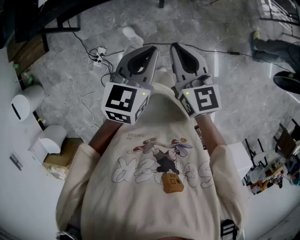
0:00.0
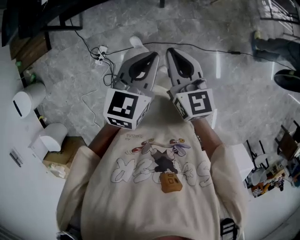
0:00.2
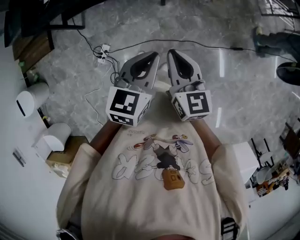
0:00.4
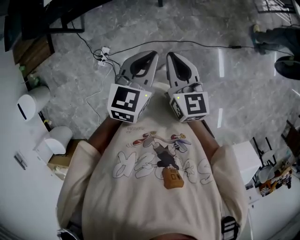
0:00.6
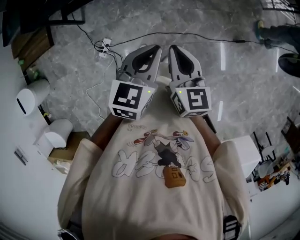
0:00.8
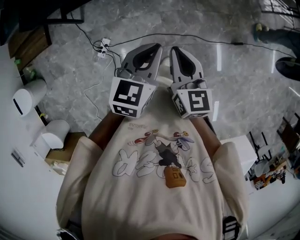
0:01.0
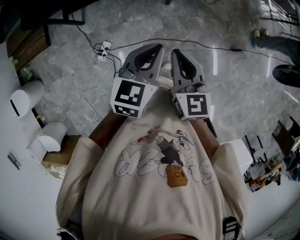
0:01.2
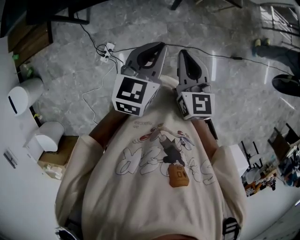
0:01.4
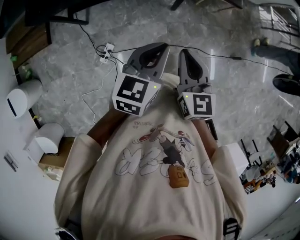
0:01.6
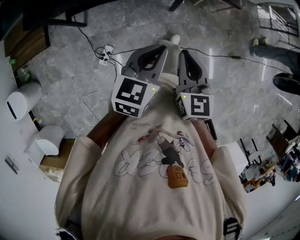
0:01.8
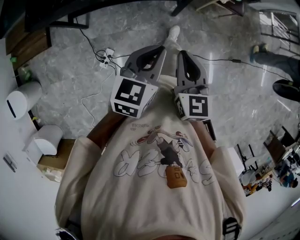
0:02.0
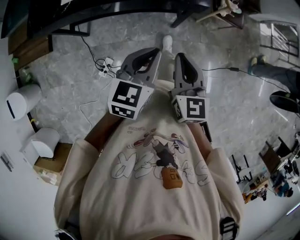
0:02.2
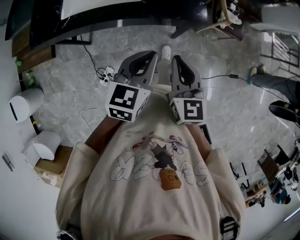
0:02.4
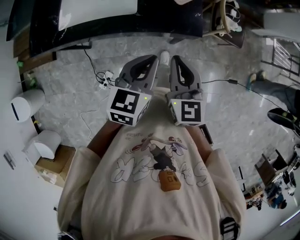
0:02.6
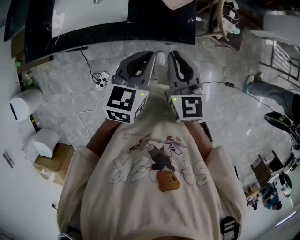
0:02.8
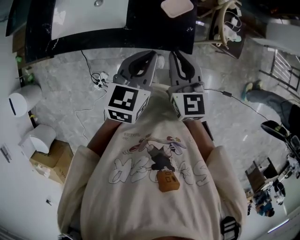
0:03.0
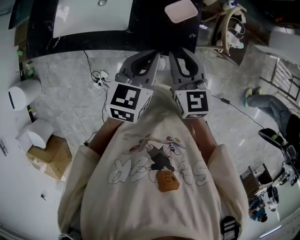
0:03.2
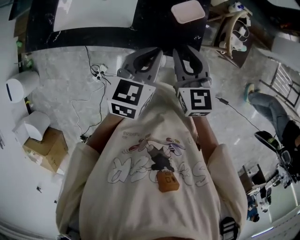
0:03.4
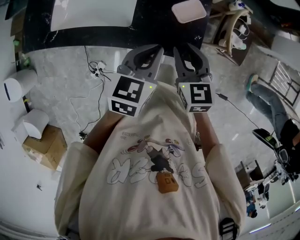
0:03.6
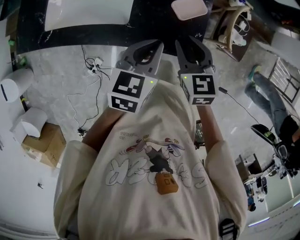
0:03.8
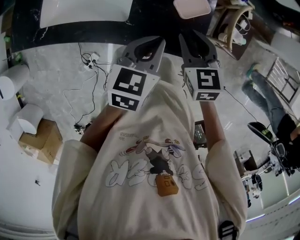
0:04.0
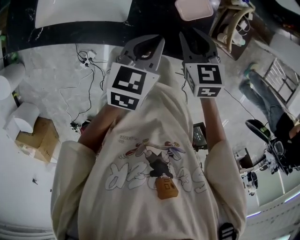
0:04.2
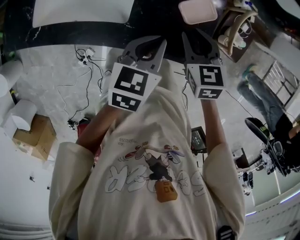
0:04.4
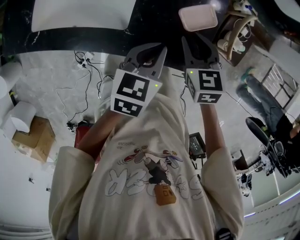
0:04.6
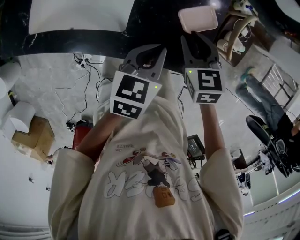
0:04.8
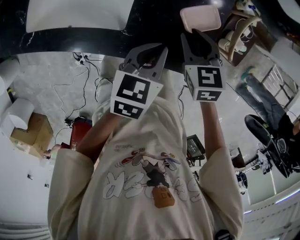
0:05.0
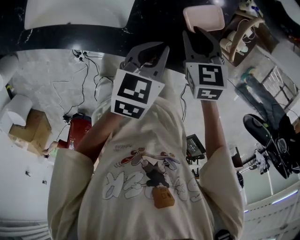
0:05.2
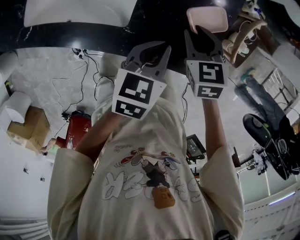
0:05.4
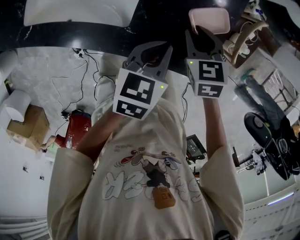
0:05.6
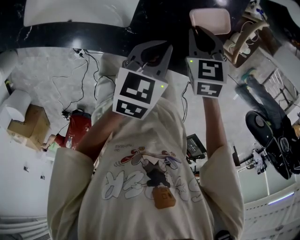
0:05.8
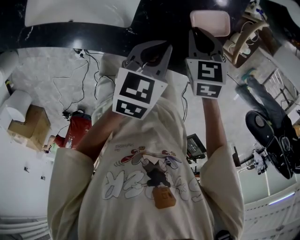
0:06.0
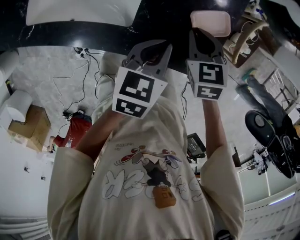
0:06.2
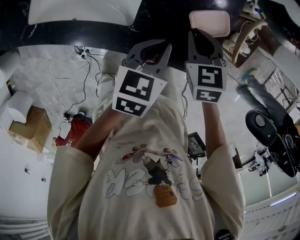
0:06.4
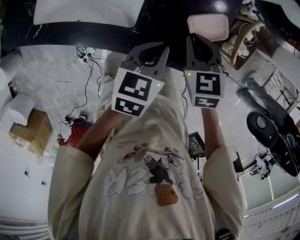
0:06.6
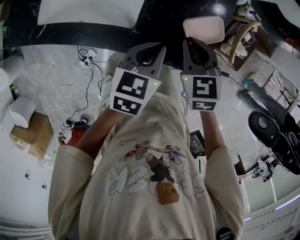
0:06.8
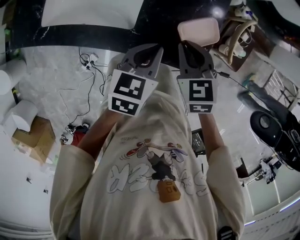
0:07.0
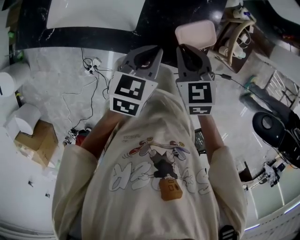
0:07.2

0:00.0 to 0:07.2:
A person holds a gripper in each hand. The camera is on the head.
0:00.0 to 0:01.4: Both grippers travel together to the left, about 10 cm.
0:01.4 to 0:02.8: Both grippers move forward, some 40 cm.
0:02.8 to 0:04.4: The two grippers go roughly 20 cm forward and downward. The right gripper turns by about 30 degrees, and opens up.
0:04.4 to 0:05.8: The two grippers go roughly 5 cm downward.
0:05.8 to 0:07.2: The right gripper moves upward and backward, roughly 15 cm. Meanwhile the left gripper heads upward, covering about 10 cm.

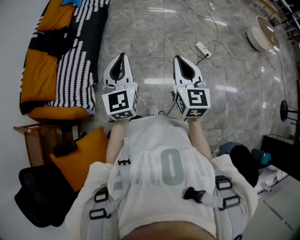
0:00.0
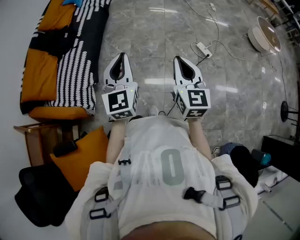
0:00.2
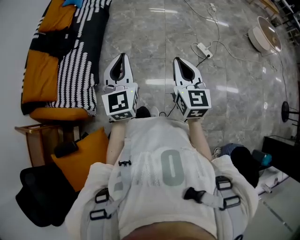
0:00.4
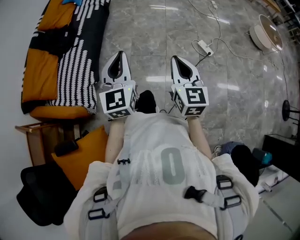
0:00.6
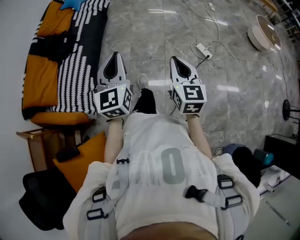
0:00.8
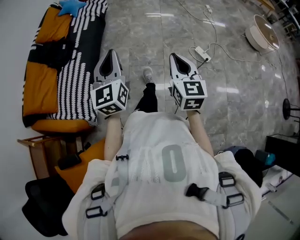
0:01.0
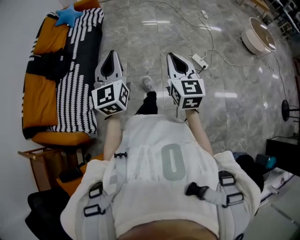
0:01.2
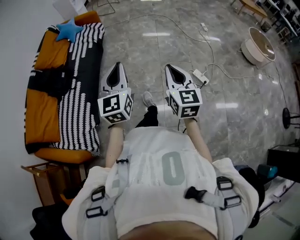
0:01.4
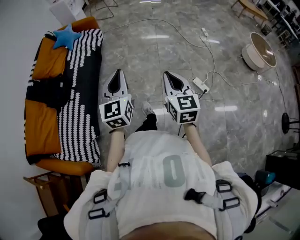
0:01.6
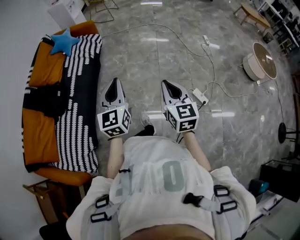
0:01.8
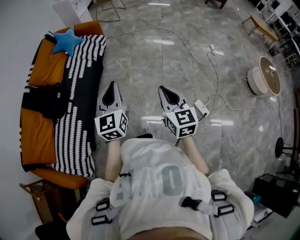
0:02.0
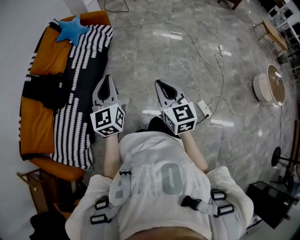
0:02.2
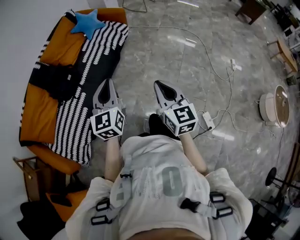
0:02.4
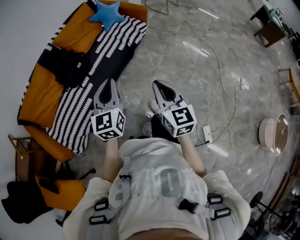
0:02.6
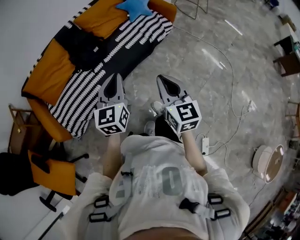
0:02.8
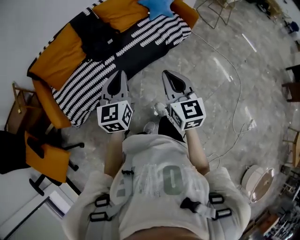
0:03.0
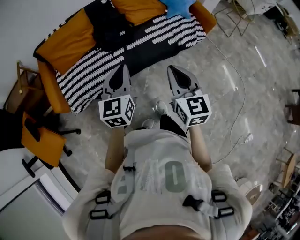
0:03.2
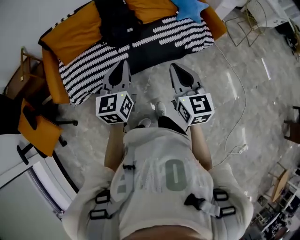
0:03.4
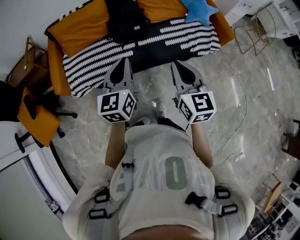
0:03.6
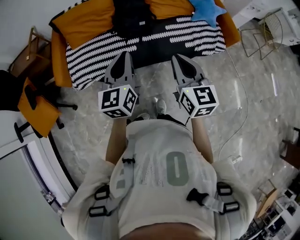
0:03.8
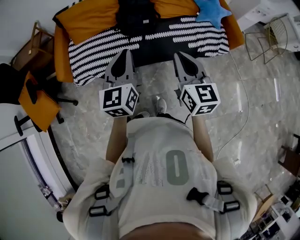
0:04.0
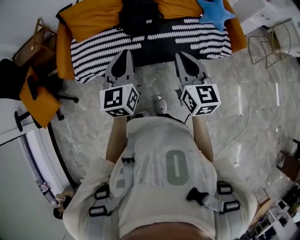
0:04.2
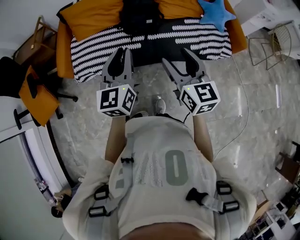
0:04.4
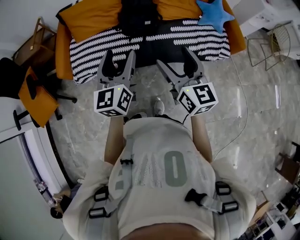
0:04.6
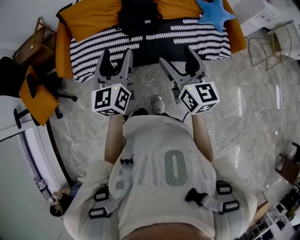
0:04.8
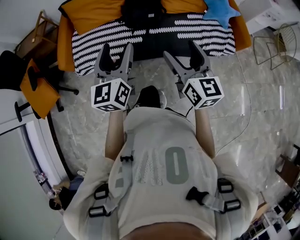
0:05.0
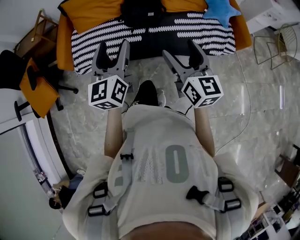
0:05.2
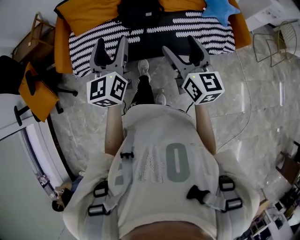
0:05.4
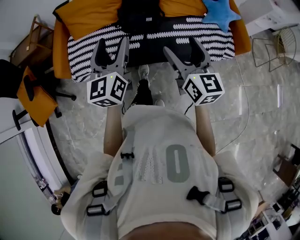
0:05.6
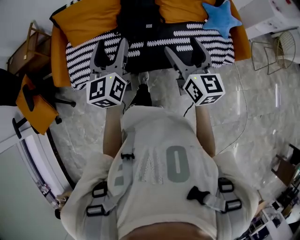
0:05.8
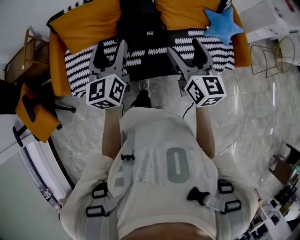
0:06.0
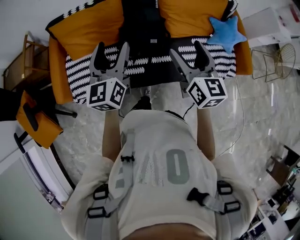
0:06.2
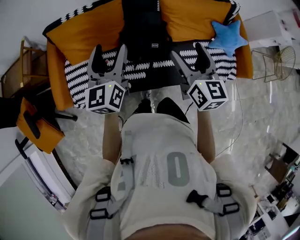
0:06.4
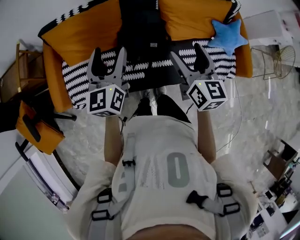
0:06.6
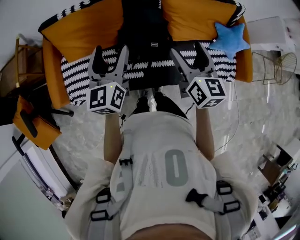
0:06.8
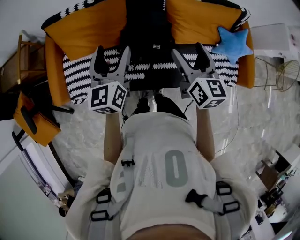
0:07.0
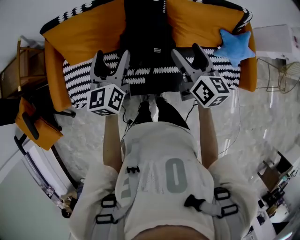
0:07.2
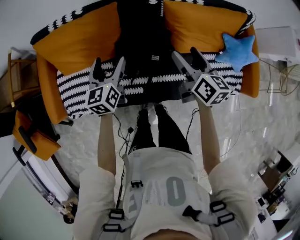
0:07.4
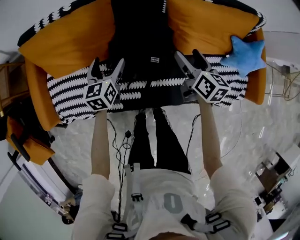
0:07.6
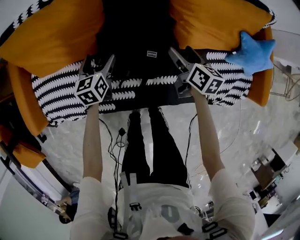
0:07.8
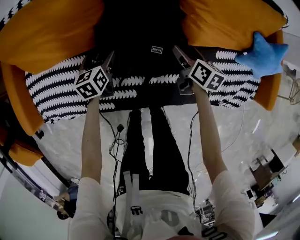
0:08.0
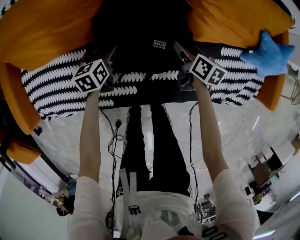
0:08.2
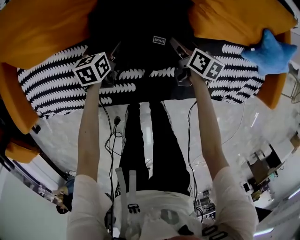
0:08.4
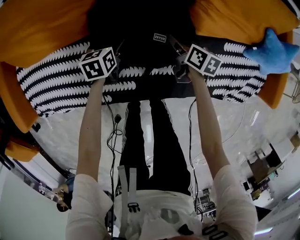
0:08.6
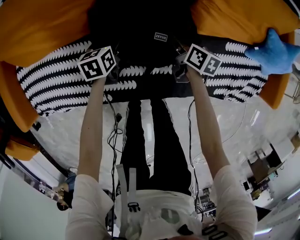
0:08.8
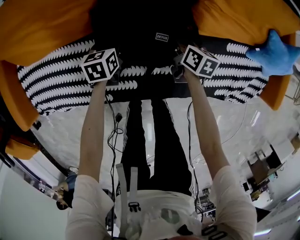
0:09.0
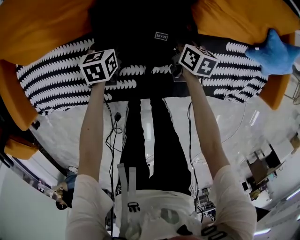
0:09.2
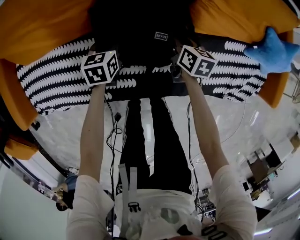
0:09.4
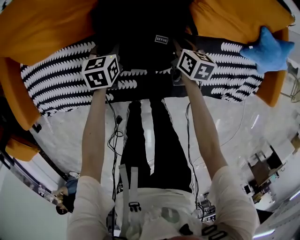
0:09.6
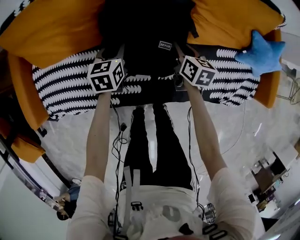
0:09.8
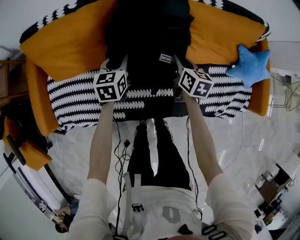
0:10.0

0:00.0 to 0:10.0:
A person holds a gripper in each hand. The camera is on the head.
0:00.0 to 0:01.4: The two grippers go some 20 cm forward.
0:01.4 to 0:02.8: The left gripper shifts by approximately 35 cm, and rotates some 40 degrees, while the right gripper changes place by about 40 cm, and rotates approximately 50 degrees.
0:02.8 to 0:04.2: The left gripper changes place by approximately 10 cm, and turns by approximately 40 degrees. Meanwhile the right gripper moves some 20 cm, and rotates about 30 degrees.
0:04.2 to 0:05.8: The two grippers go some 15 cm forward. The left gripper opens, while the right gripper opens its fingers.
0:05.8 to 0:07.2: Both grippers move forward, roughly 30 cm.
0:07.2 to 0:08.6: The grippers both shift downward by some 50 cm. The right gripper swivels roughly 40 degrees. The left gripper tilts its fingers some 40 degrees downward.
0:08.6 to 0:10.0: The grippers both shift upward by some 20 cm. The right gripper closes up, while the left gripper swivels approximately 20 degrees, and closes up.

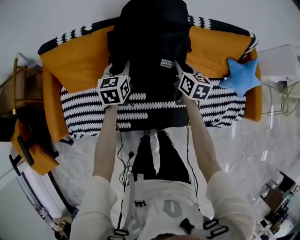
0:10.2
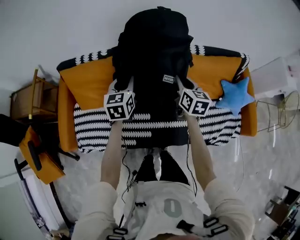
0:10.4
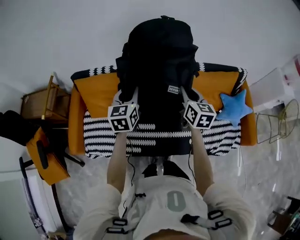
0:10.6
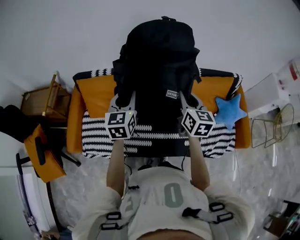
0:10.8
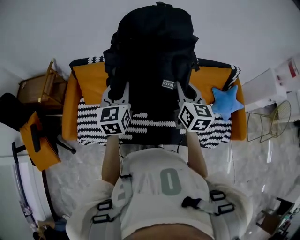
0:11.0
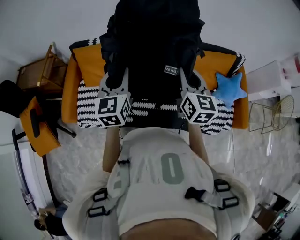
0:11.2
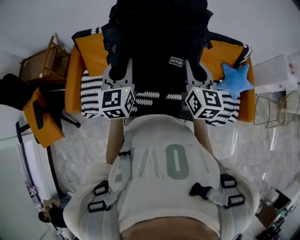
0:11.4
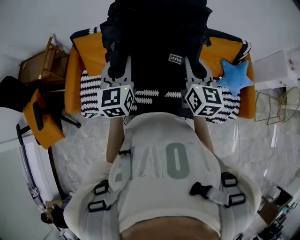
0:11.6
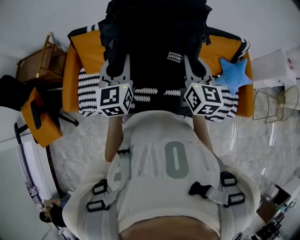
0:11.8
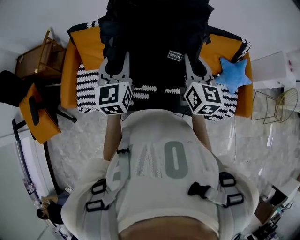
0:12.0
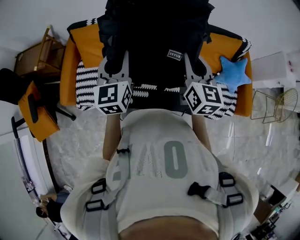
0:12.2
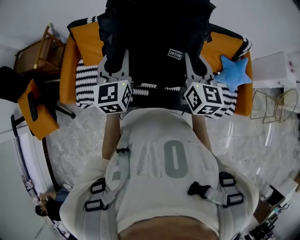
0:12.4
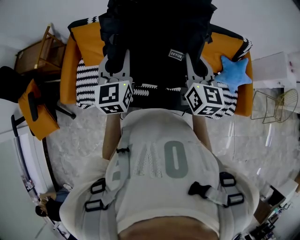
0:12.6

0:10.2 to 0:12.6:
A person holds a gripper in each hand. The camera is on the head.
0:10.2 to 0:11.4: Both grippers travel together upward and backward, approximately 35 cm. The left gripper turns by about 20 degrees. The right gripper rotates some 30 degrees.
0:11.4 to 0:12.6: The grippers move only a little.

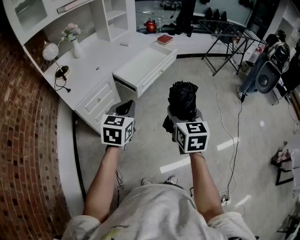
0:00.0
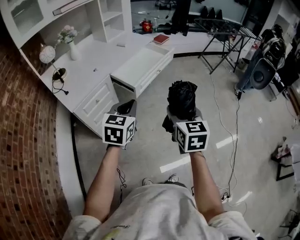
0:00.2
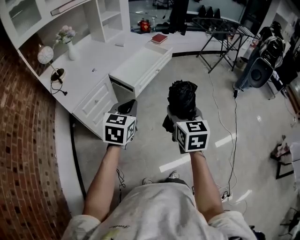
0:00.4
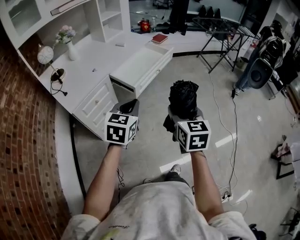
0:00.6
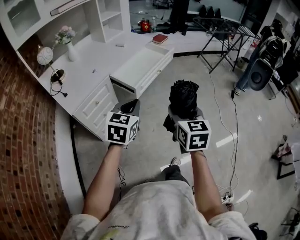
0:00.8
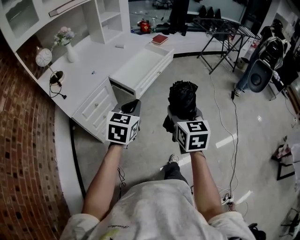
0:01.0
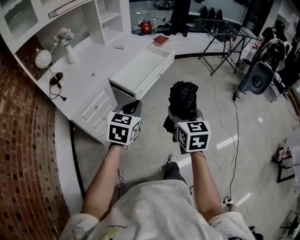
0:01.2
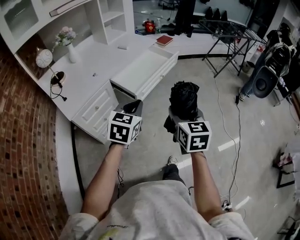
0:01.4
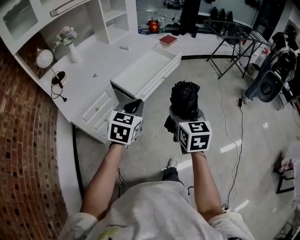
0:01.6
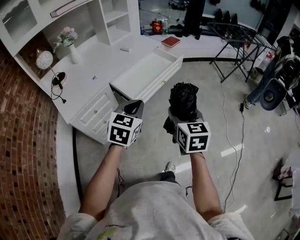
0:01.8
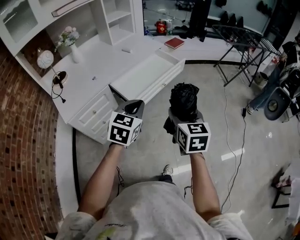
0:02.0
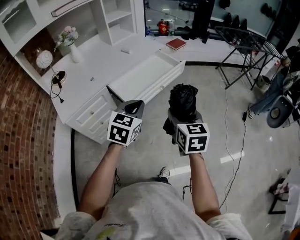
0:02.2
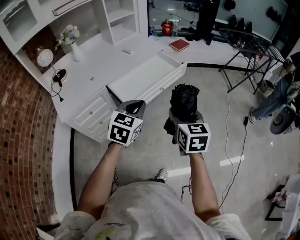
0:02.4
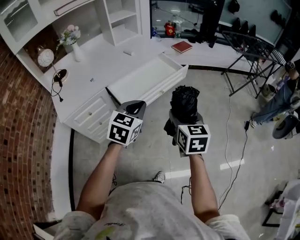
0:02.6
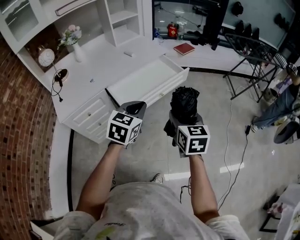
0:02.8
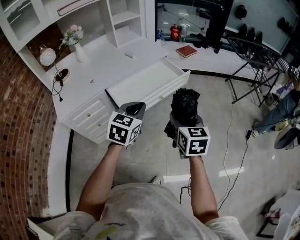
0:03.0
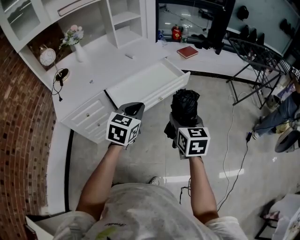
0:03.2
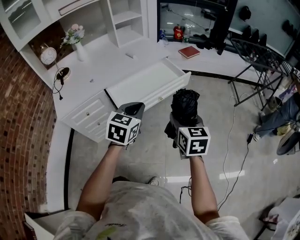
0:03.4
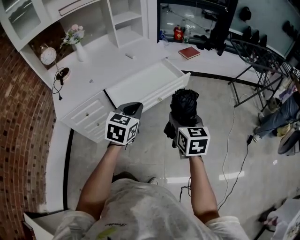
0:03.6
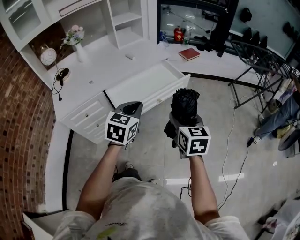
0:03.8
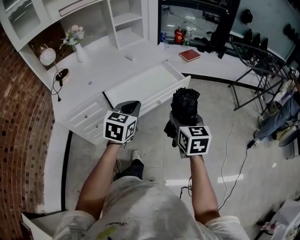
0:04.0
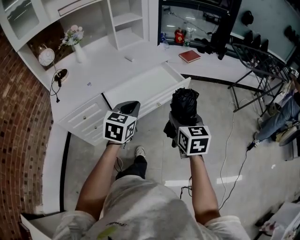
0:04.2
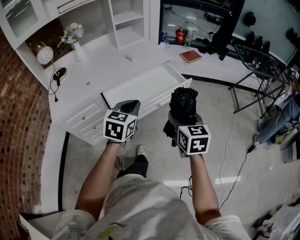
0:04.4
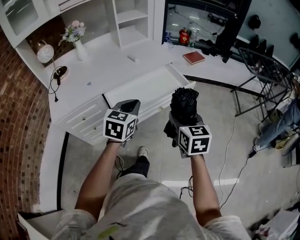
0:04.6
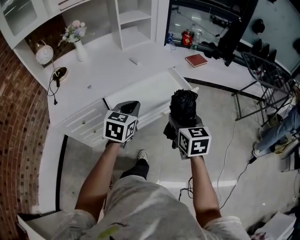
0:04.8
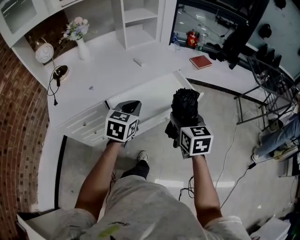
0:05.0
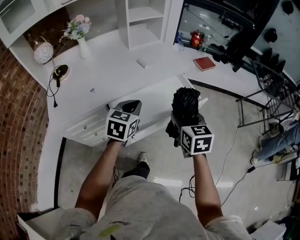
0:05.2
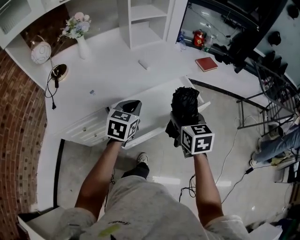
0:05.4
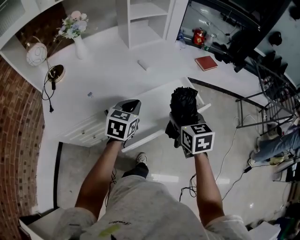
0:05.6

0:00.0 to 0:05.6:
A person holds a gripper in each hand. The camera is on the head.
0:00.0 to 0:01.4: Both grippers travel together forward, approximately 10 cm.
0:01.4 to 0:02.8: The grippers both shift forward and to the right by roughly 20 cm.
0:02.8 to 0:04.2: The two grippers go about 5 cm forward.
0:04.2 to 0:05.6: Both grippers move forward and to the left, some 25 cm.
